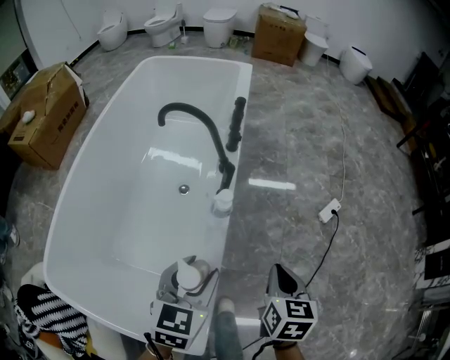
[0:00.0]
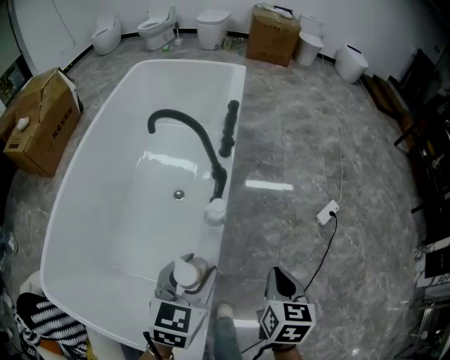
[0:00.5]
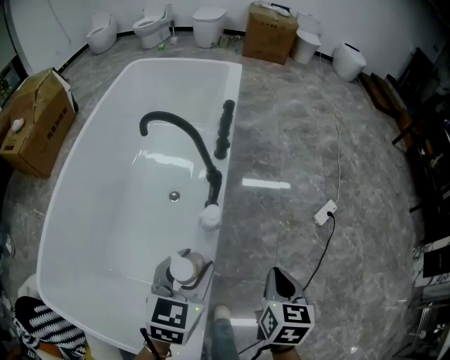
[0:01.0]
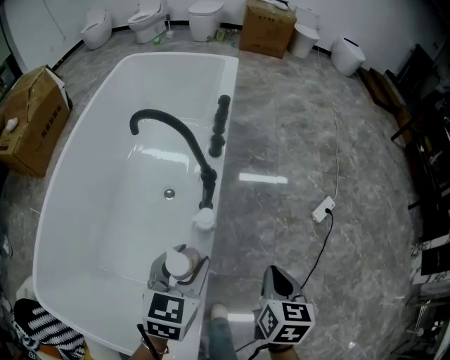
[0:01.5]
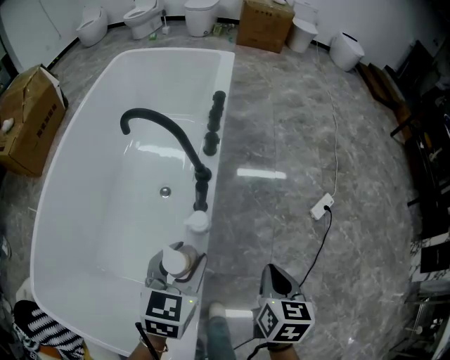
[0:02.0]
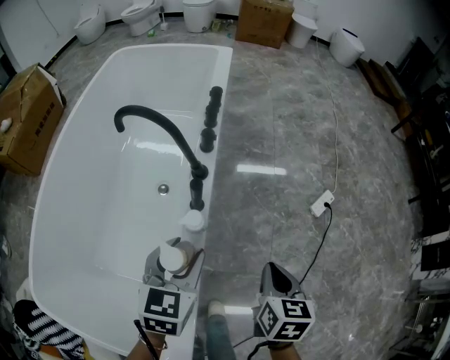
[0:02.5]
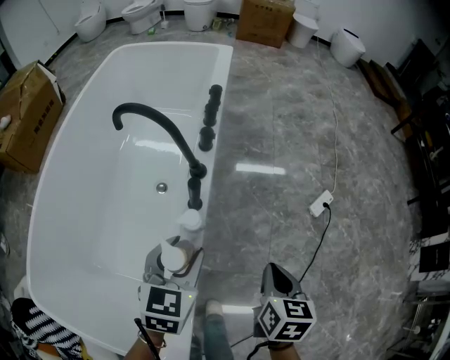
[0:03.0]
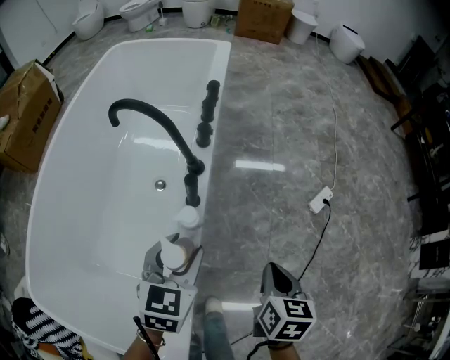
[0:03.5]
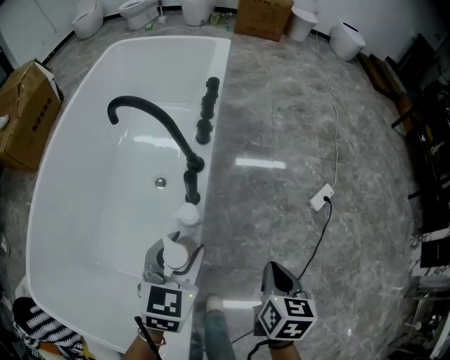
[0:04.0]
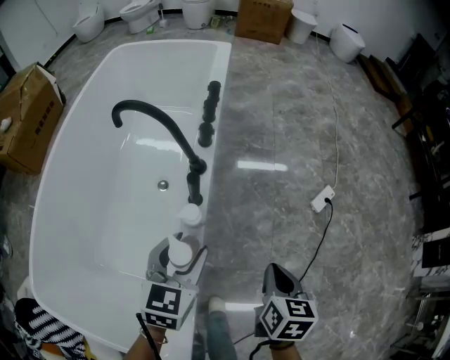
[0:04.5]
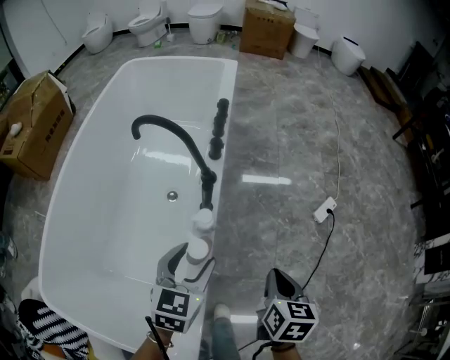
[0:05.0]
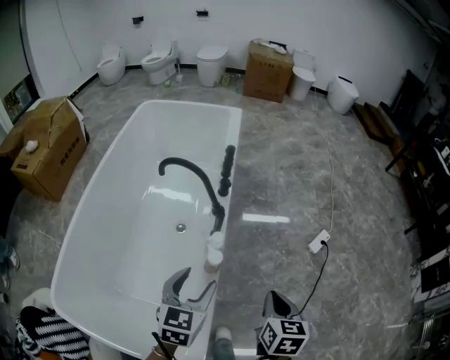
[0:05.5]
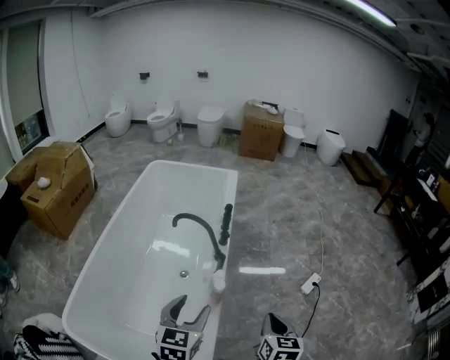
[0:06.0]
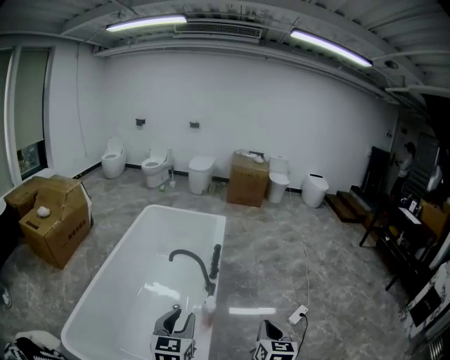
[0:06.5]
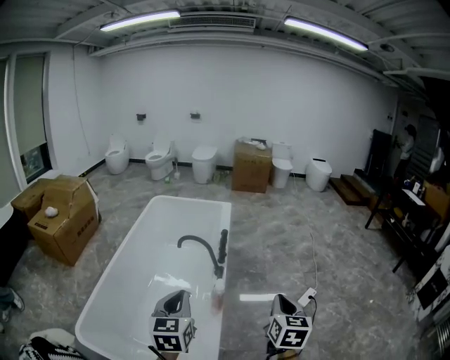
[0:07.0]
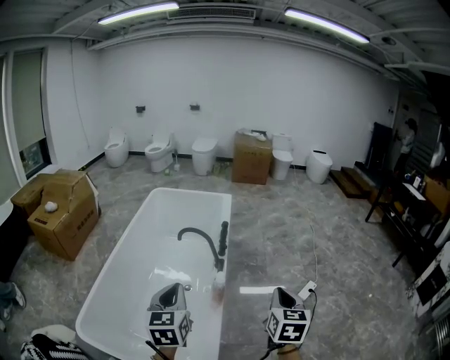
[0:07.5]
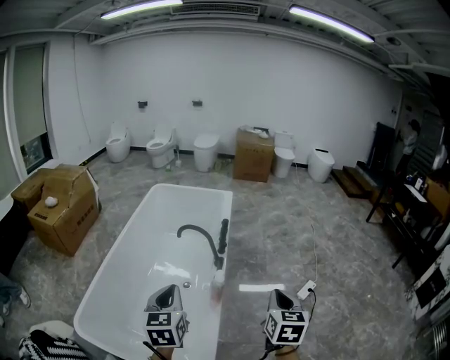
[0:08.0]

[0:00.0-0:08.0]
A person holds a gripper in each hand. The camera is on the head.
0:00.0 to 0:02.0: The left gripper shifts approximately 10 cm forward; the right gripper goes approximately 5 cm forward.
0:02.0 to 0:04.0: The grippers move only a little.
0:04.0 to 0:06.0: The grippers both shift upward and backward by some 25 cm.
0:06.0 to 0:08.0: The right gripper shifts roughly 10 cm upward; the left gripper is displaced upward, to the left and backward by approximately 15 cm, and closes.

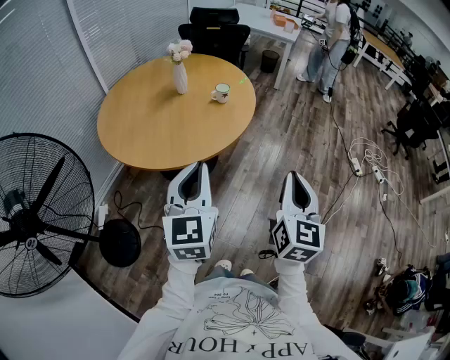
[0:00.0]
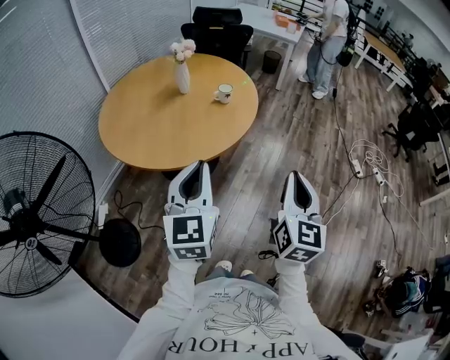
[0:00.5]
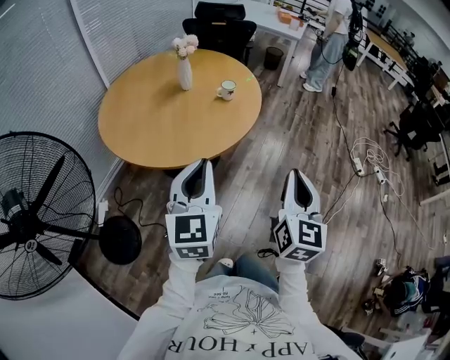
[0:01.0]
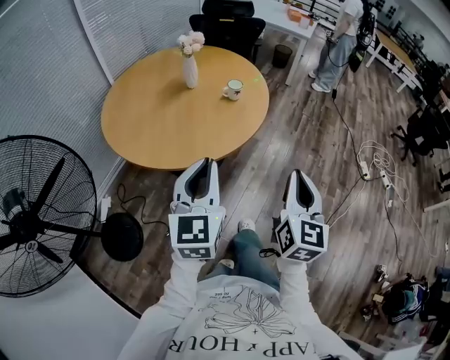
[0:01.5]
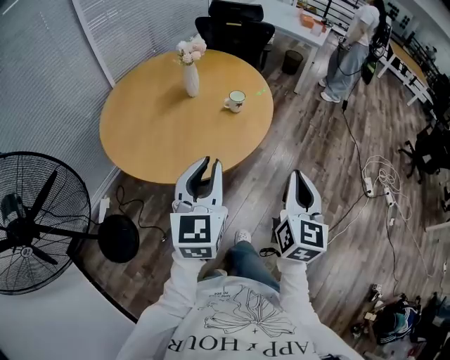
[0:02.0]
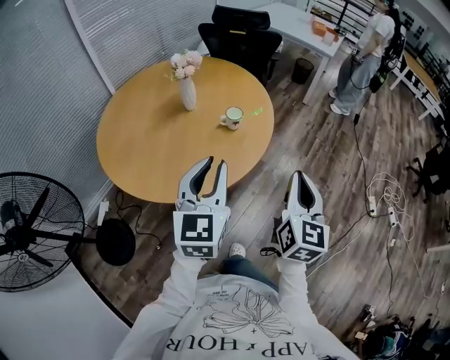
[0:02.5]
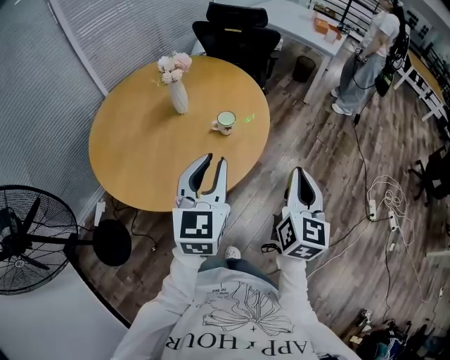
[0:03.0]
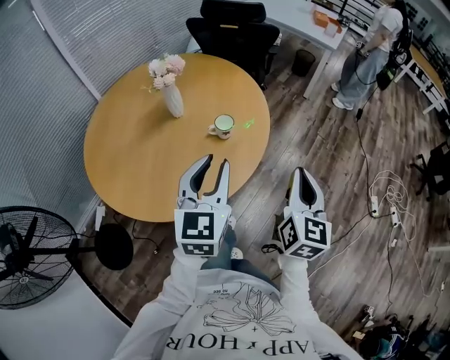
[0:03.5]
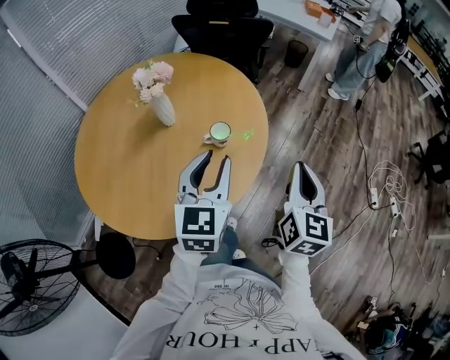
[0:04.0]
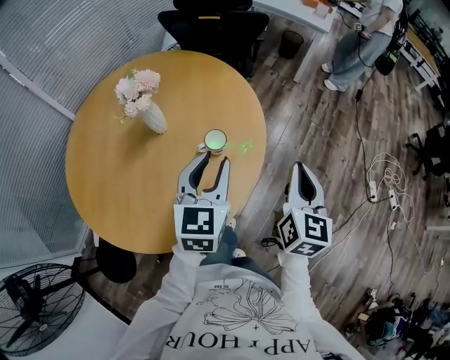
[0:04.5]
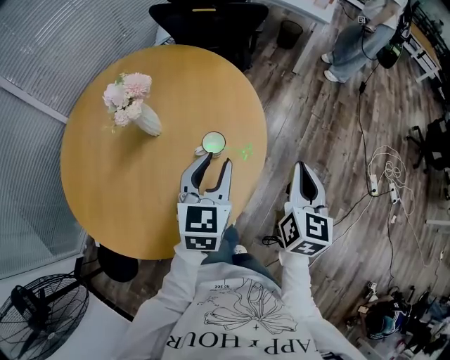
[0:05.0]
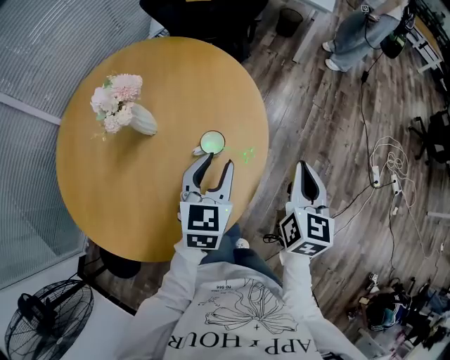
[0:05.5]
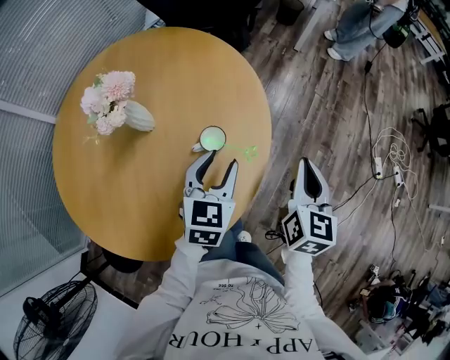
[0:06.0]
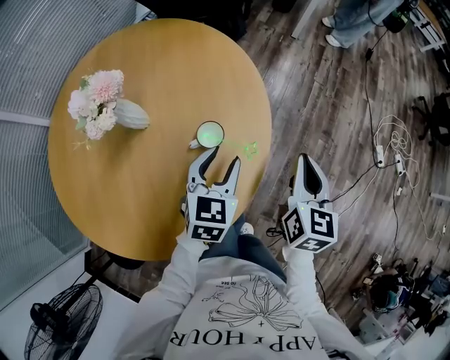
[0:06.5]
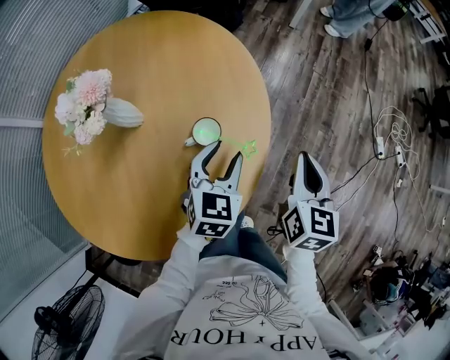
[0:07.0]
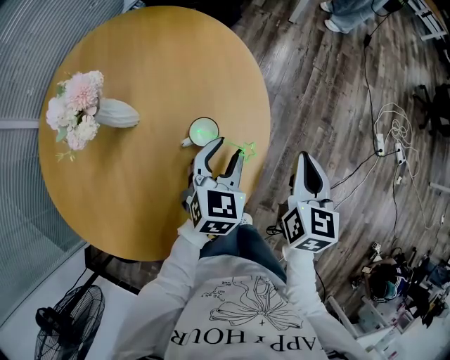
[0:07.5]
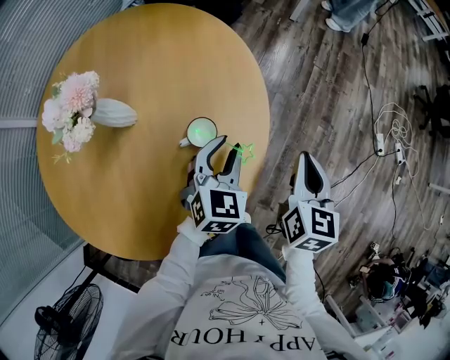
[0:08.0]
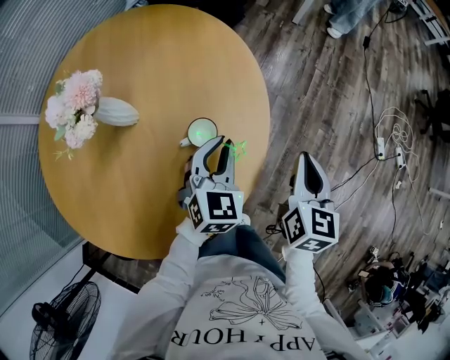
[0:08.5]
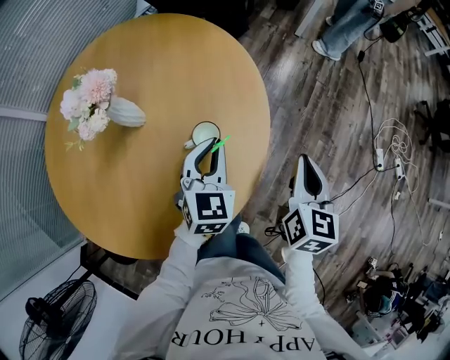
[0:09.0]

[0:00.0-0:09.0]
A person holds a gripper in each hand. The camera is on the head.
0:00.0 to 0:02.0: The grippers both shift forward by about 15 cm.
0:02.0 to 0:04.5: Both grippers travel together forward, roughly 35 cm.
0:04.5 to 0:07.0: Both grippers travel together downward and forward, about 15 cm. The left gripper swivels some 20 degrees.
0:07.0 to 0:09.0: The left gripper closes up.

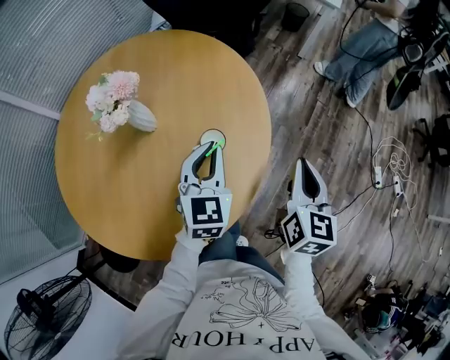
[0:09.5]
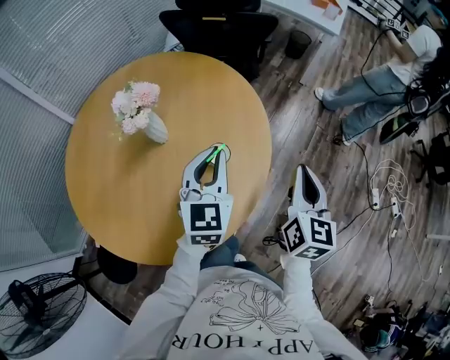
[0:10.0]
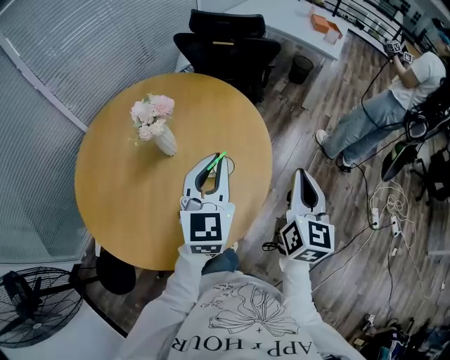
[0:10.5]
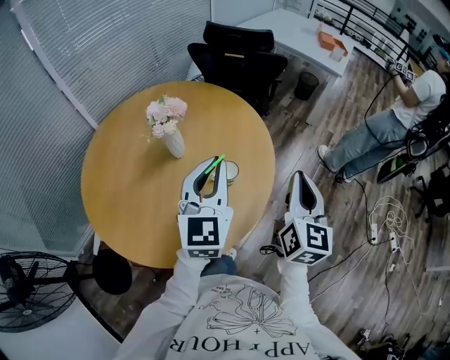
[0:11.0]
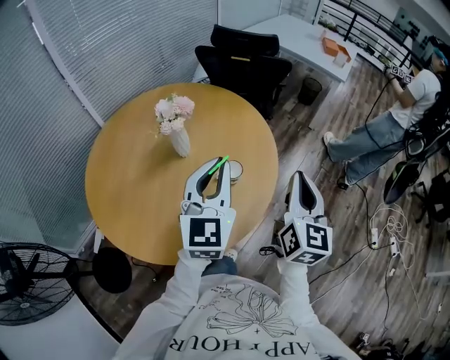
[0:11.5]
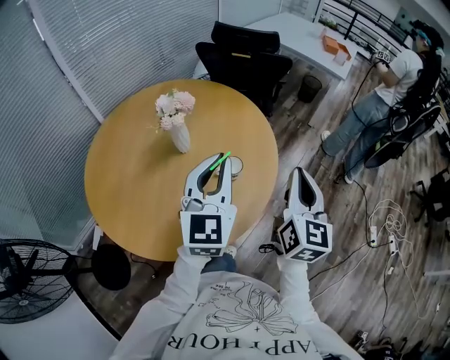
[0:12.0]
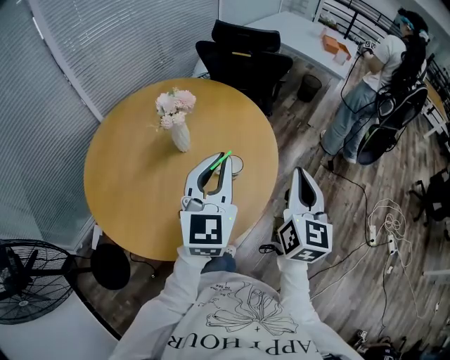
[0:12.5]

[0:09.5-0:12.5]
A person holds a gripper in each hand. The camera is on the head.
0:09.5 to 0:11.0: The left gripper goes approximately 20 cm upward and backward, and swivels roughly 20 degrees; the right gripper heads upward, covering approximately 15 cm.
0:11.0 to 0:12.5: The grippers move only a little.

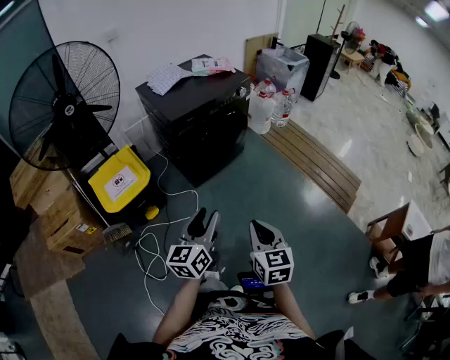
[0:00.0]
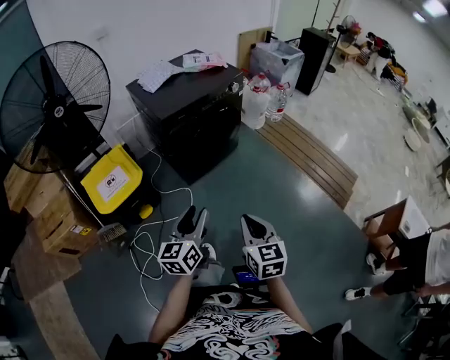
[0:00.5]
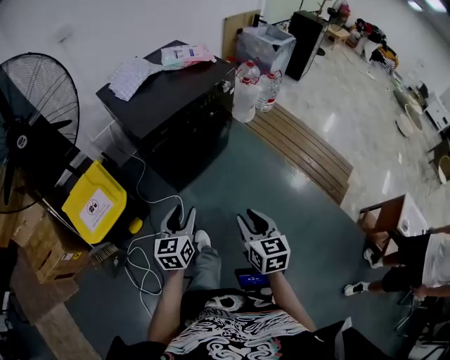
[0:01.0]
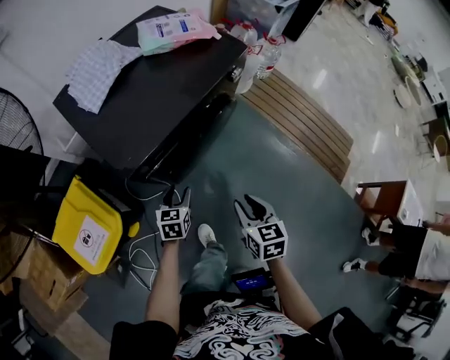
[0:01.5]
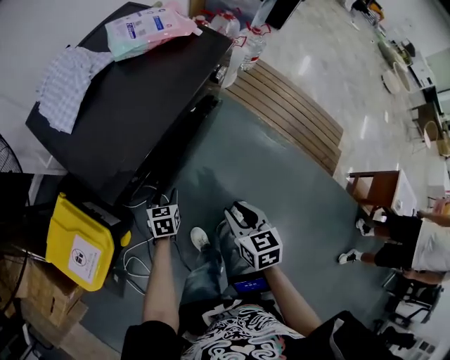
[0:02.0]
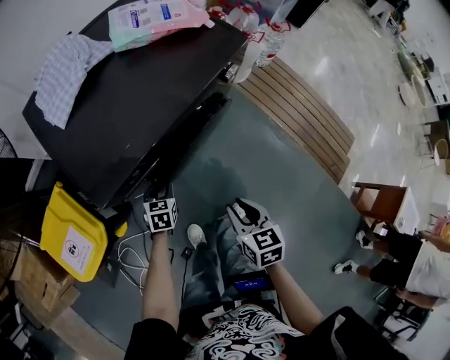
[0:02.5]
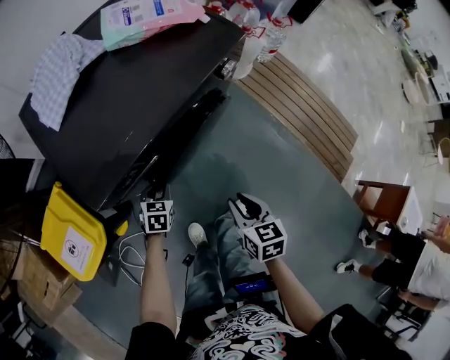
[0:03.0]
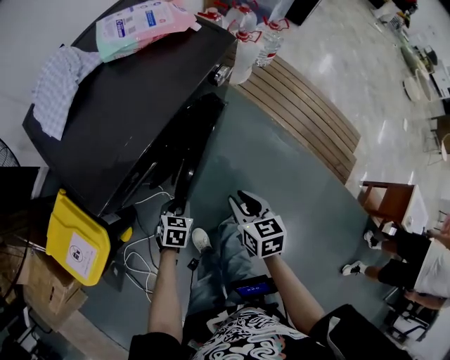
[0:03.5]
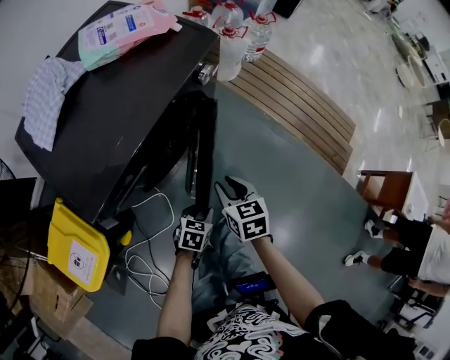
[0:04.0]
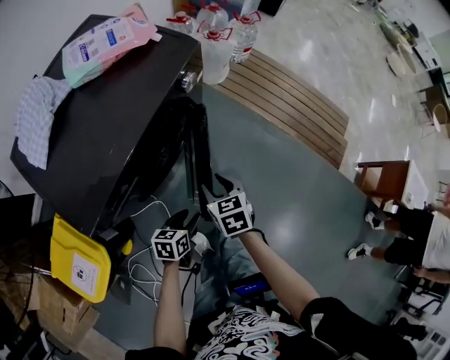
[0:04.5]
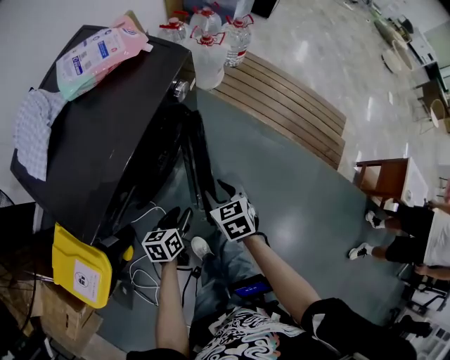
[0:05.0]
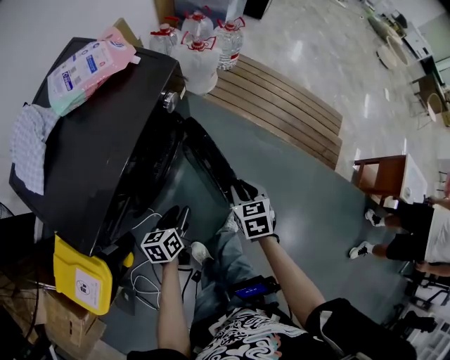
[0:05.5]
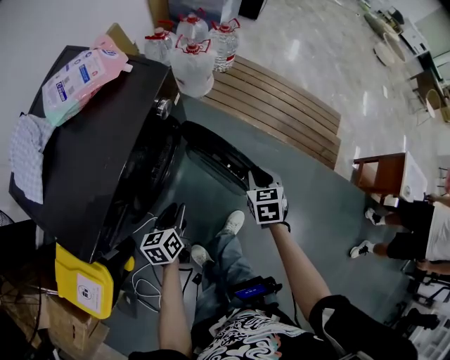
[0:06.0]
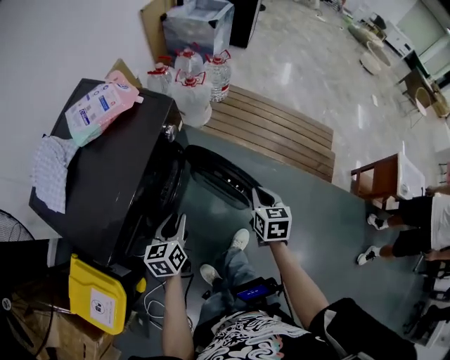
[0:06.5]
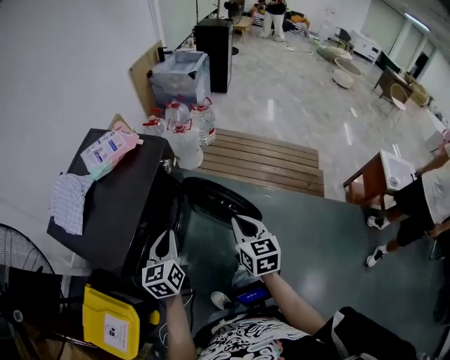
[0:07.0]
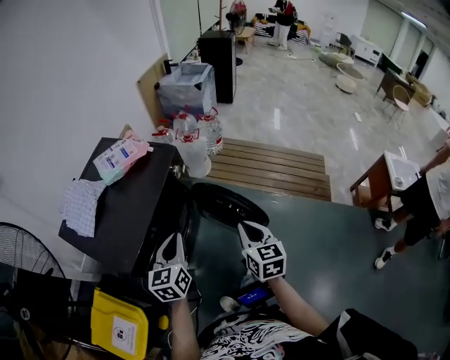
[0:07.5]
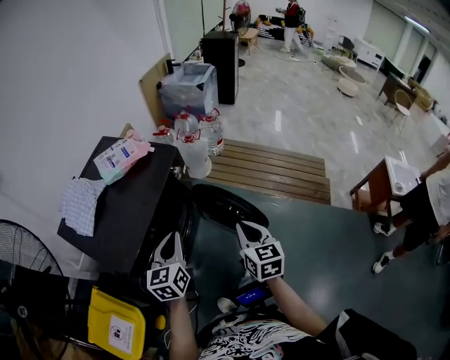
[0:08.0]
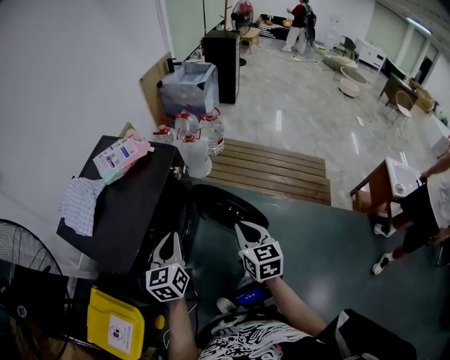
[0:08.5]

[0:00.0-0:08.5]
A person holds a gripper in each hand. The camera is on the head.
0:00.0 to 0:02.0: Both grippers are carried forward, approximately 50 cm. The left gripper shifts roughly 35 cm downward, and tips its fingers downward by approximately 40 degrees. Meanwhile the right gripper shifts approximately 20 cm downward, turns by about 20 degrees, and opens its fingers.
0:02.0 to 0:04.0: The right gripper heads forward and downward, covering some 15 cm. Meanwhile the left gripper is displaced to the right by about 15 cm, and rotates approximately 30 degrees.
0:04.0 to 0:06.5: The right gripper is displaced to the right by about 20 cm, turns by approximately 30 degrees, and closes. Meanwhile the left gripper travels upward and forward by some 20 cm, and turns by some 30 degrees.
0:06.5 to 0:08.5: The right gripper is displaced upward, backward and to the left by some 20 cm. The left gripper shifts some 20 cm upward, swivels approximately 20 degrees, and closes its fingers.
